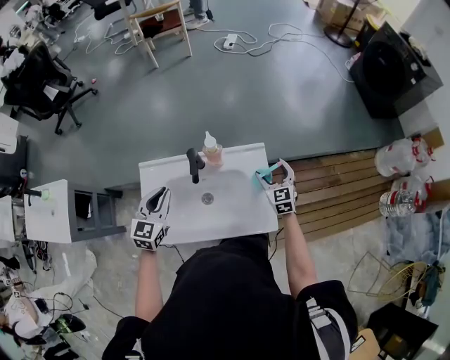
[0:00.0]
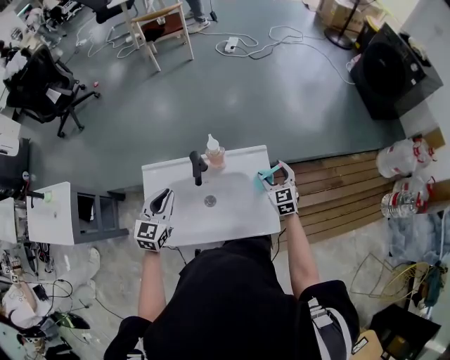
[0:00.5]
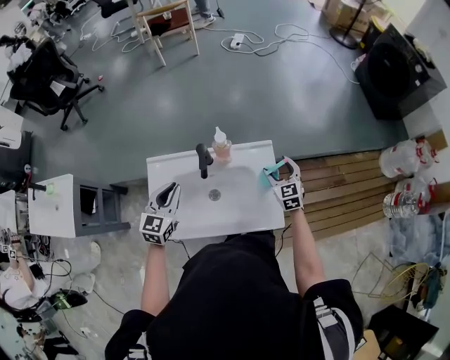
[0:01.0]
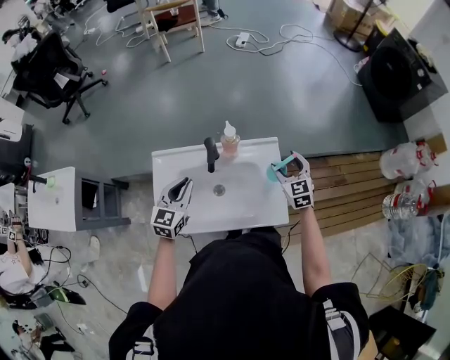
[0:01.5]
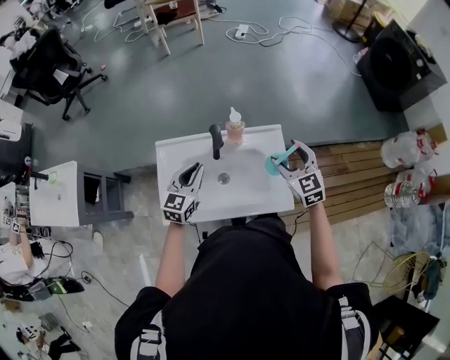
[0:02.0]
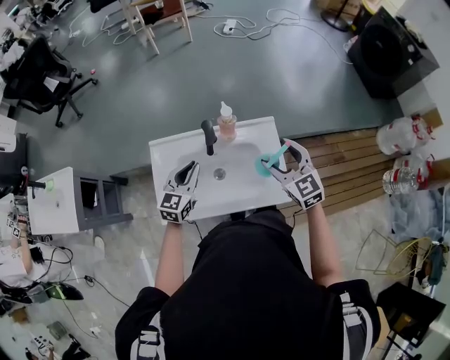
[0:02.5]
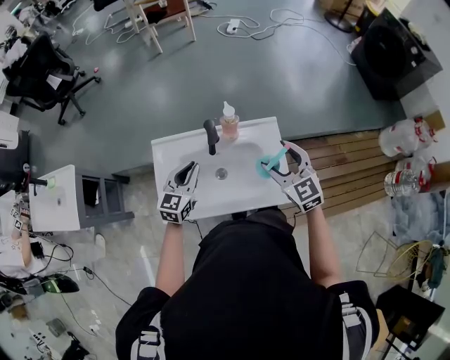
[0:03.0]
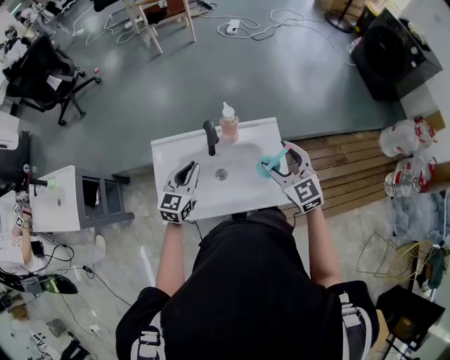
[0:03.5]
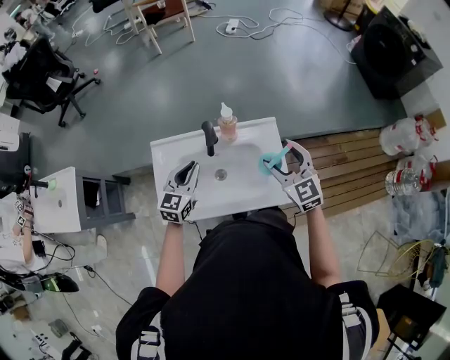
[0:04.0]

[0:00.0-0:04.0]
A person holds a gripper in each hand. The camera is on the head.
0.0 to 2.0 s: The right gripper travels upward, to the left and backward by some 15 cm.
2.0 to 4.0 s: The grippers move only a little.

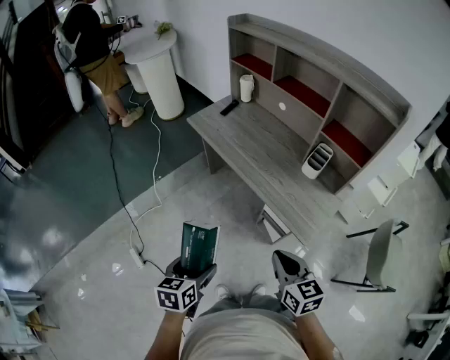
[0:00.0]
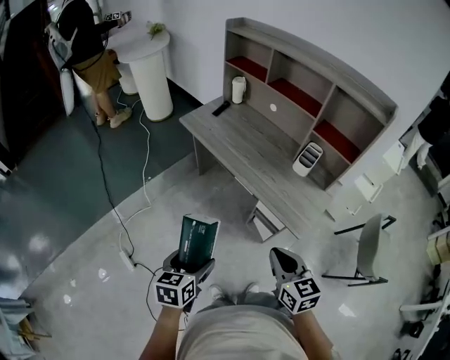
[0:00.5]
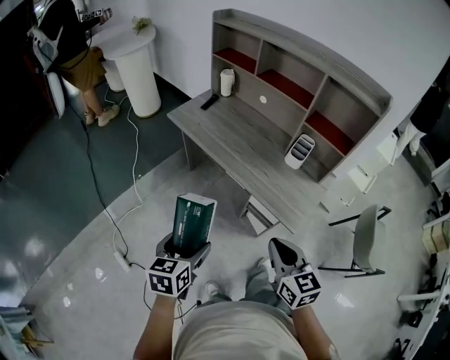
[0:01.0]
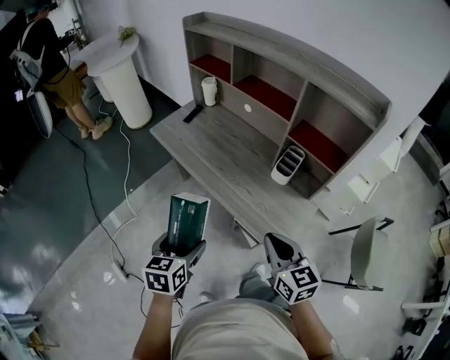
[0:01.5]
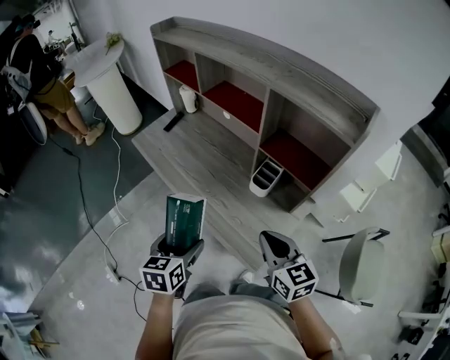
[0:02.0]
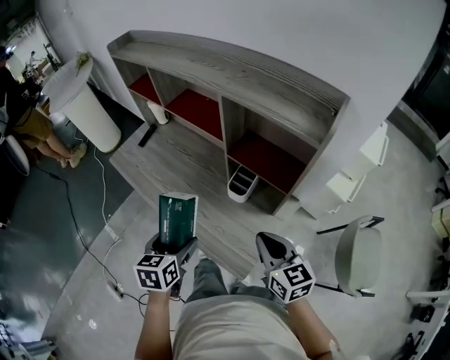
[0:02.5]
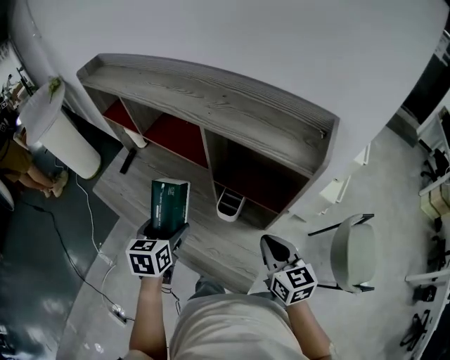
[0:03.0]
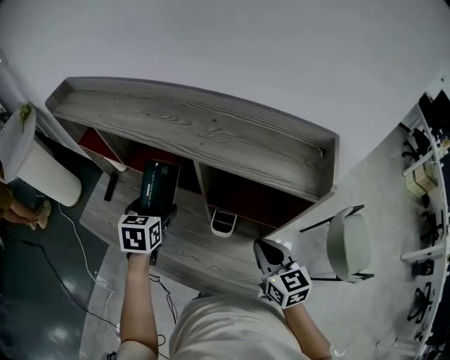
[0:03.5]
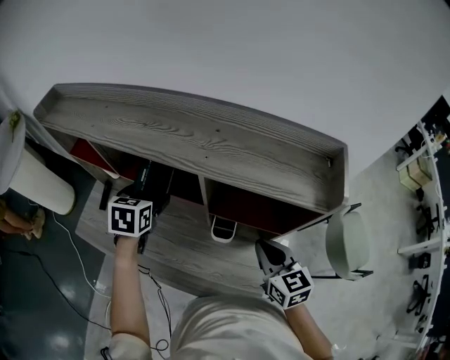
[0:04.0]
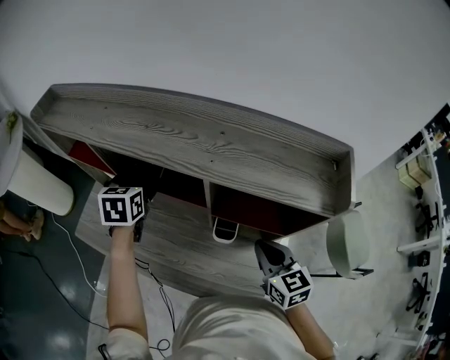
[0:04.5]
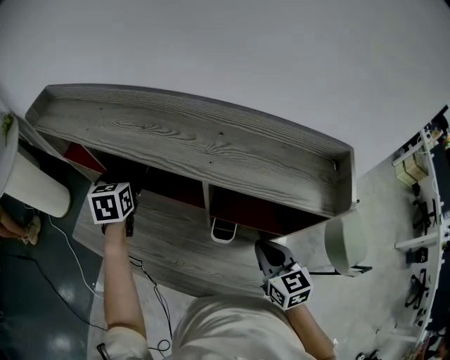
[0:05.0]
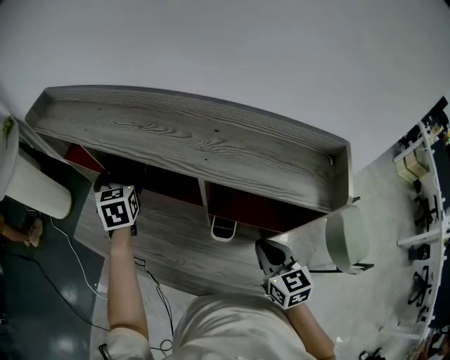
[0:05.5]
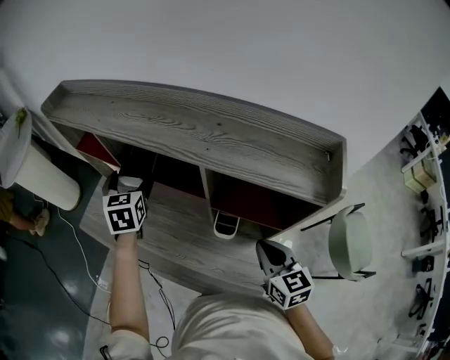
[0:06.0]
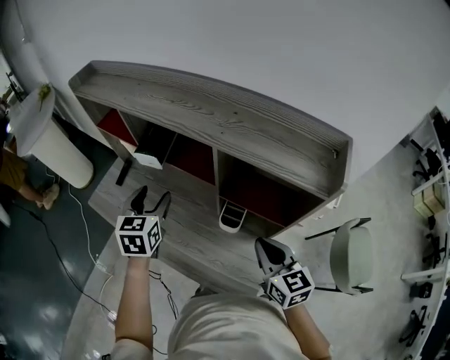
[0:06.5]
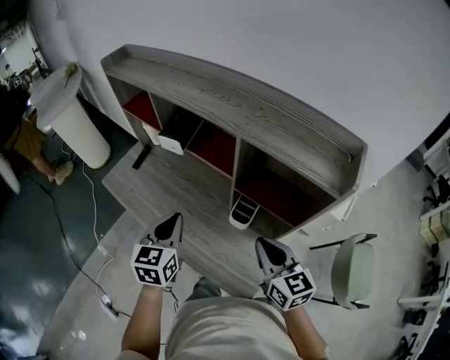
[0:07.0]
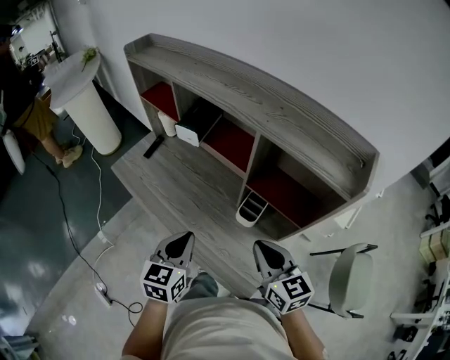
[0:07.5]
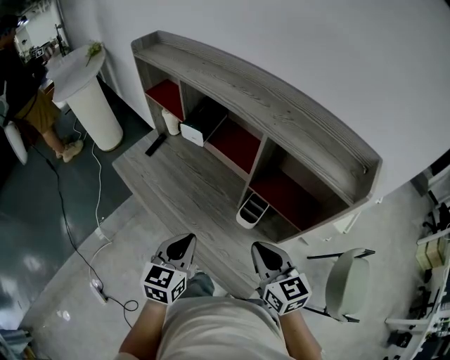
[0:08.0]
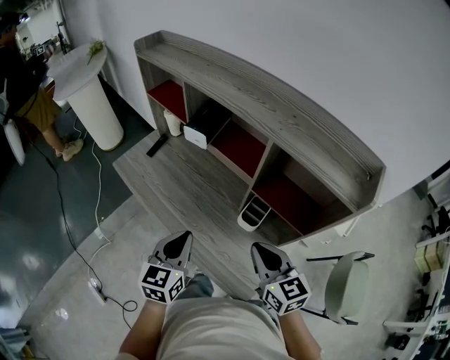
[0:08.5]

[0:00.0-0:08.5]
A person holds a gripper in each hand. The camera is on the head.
0.0 to 2.0 s: The right gripper heads to the right and forward, covering roughly 25 cm. Meanwhile the left gripper travels forward and to the right by roughly 30 cm.
2.0 to 4.0 s: The right gripper moves approximately 20 cm, and turns by approximately 30 degrees. The left gripper changes place by some 40 cm, and changes its angle by roughly 30 degrees.
4.0 to 6.5 s: The left gripper travels backward by approximately 10 cm, and changes its angle by approximately 20 degrees.
6.5 to 8.5 s: The right gripper moves to the left, about 10 cm; the left gripper travels backward by roughly 20 cm, and closes its fingers.

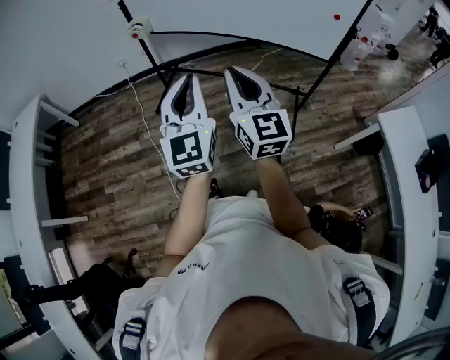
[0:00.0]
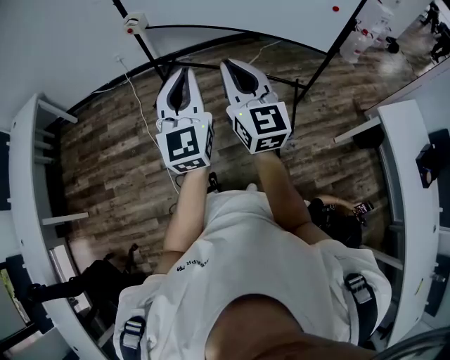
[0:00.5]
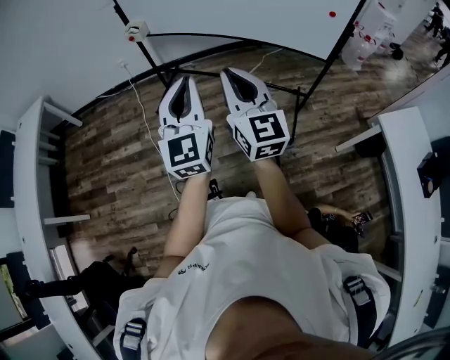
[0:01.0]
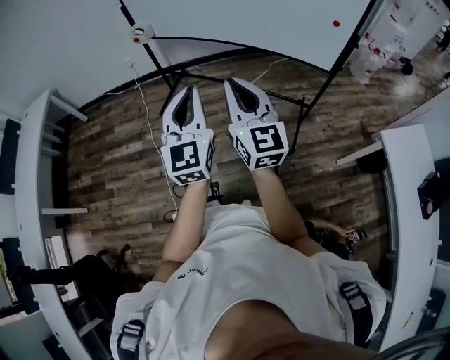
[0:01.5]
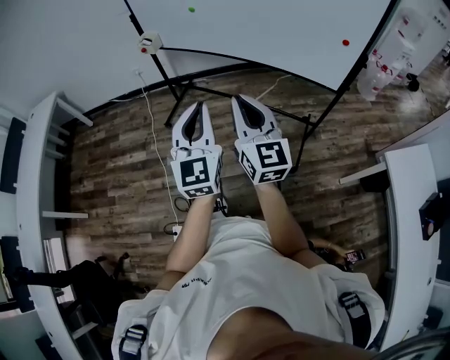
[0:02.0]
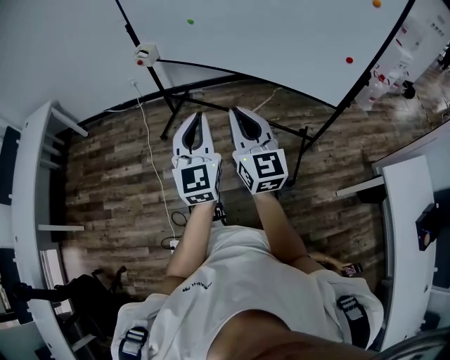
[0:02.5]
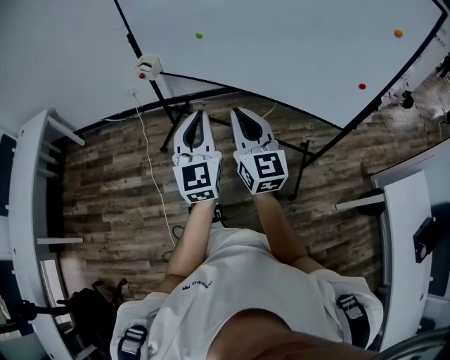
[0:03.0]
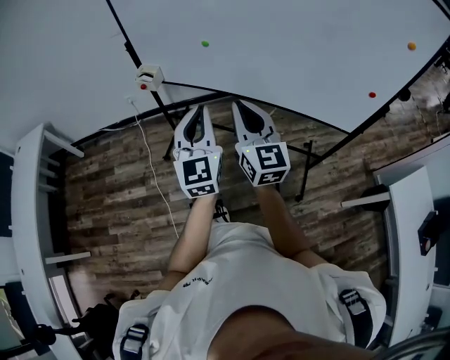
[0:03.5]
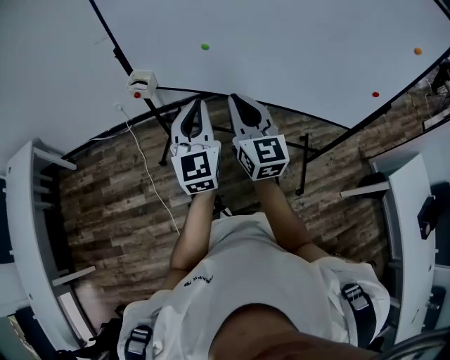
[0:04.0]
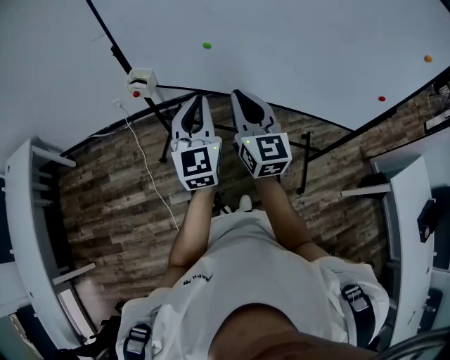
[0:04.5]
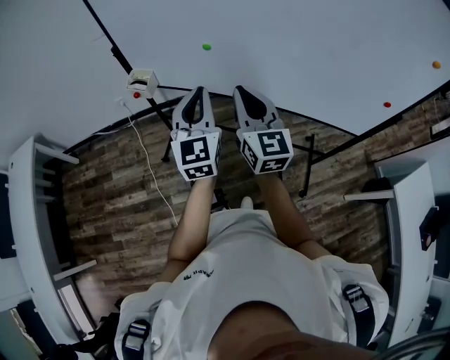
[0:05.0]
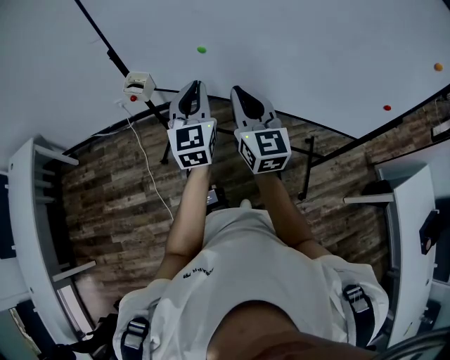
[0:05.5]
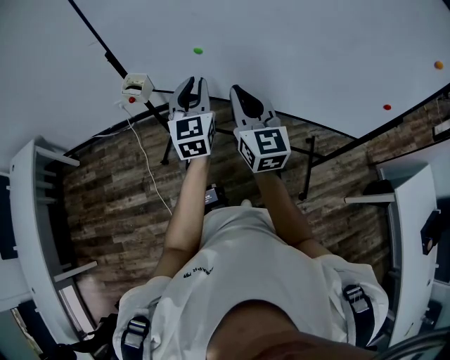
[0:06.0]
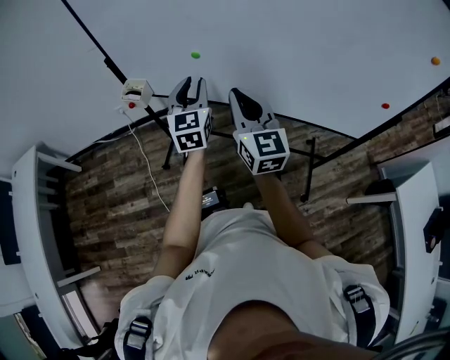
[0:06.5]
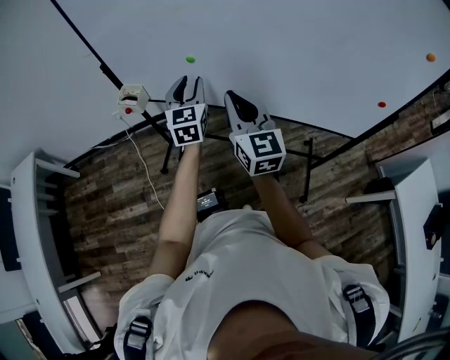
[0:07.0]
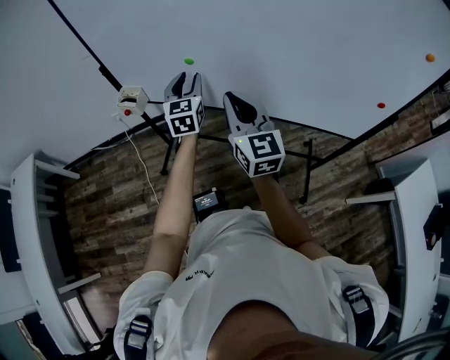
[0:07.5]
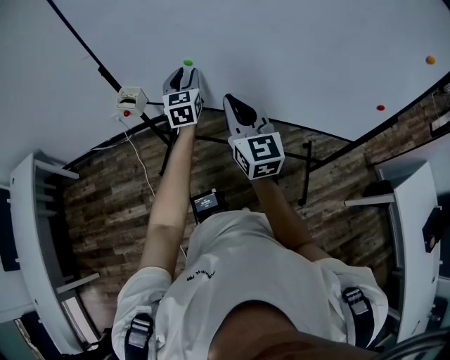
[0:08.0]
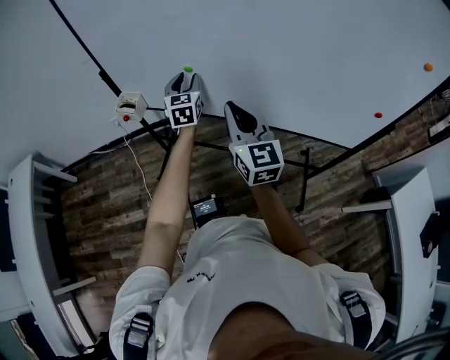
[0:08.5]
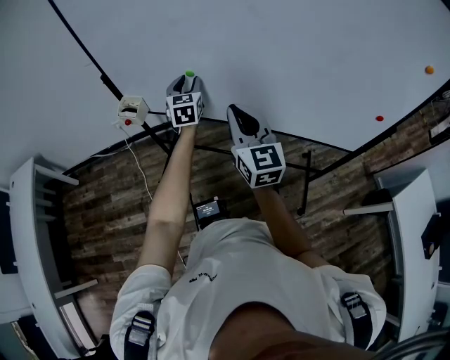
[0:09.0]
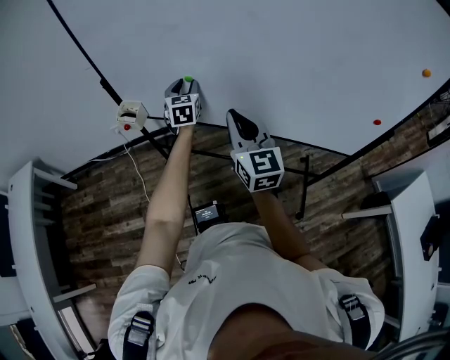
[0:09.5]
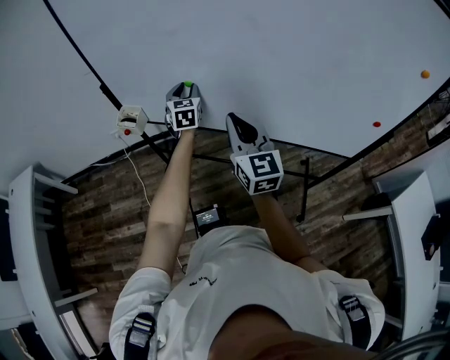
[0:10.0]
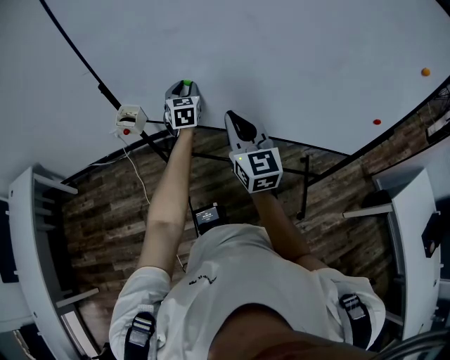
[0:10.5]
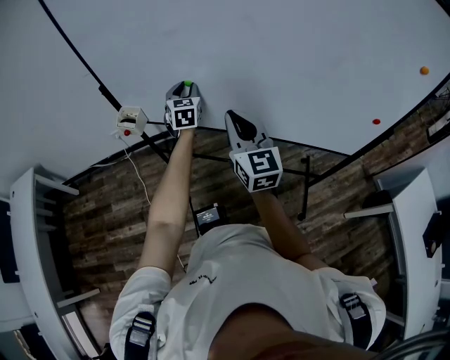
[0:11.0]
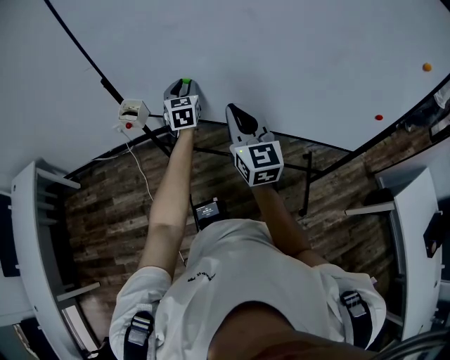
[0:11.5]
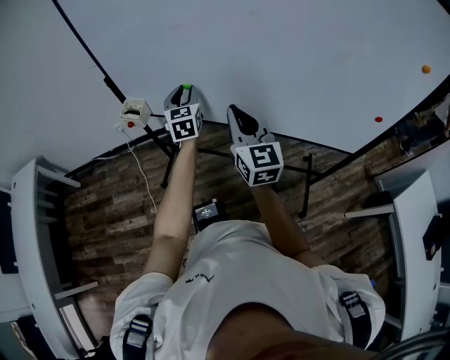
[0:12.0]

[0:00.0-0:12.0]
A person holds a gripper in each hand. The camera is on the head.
0.0 to 2.0 s: The two grippers go about 10 cm to the right.
2.0 to 4.0 s: Both grippers move forward, some 35 cm.
4.0 to 6.0 s: The left gripper travels forward by some 15 cm, while the right gripper heads forward and to the right, covering approximately 10 cm.
6.0 to 8.0 s: The left gripper shifts about 10 cm forward.
8.0 to 10.0 s: The left gripper shifts approximately 5 cm forward.
10.0 to 12.0 s: The left gripper travels backward by some 5 cm.

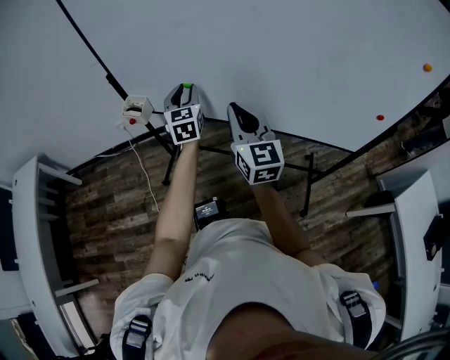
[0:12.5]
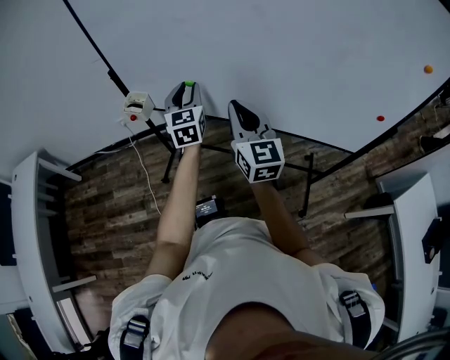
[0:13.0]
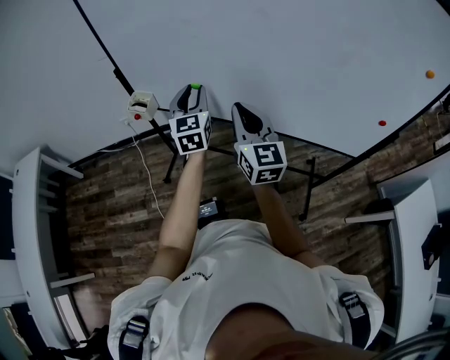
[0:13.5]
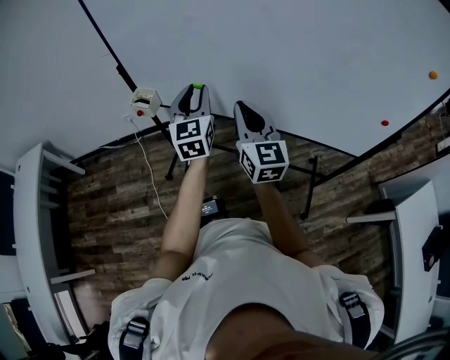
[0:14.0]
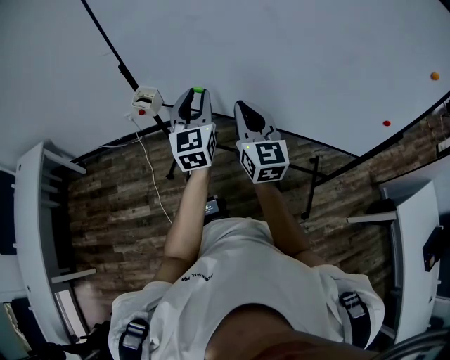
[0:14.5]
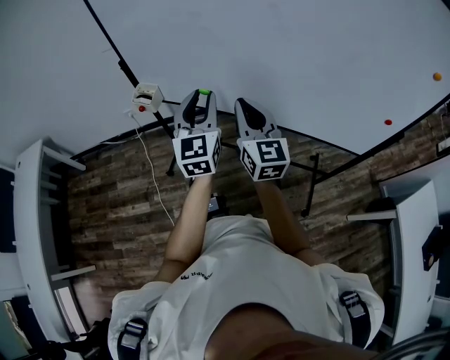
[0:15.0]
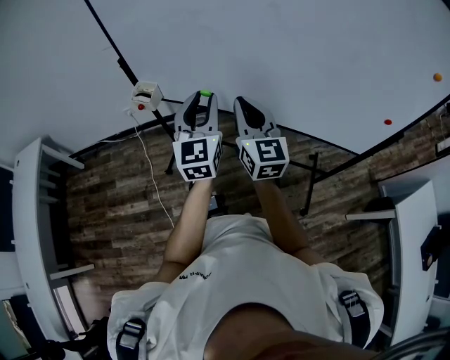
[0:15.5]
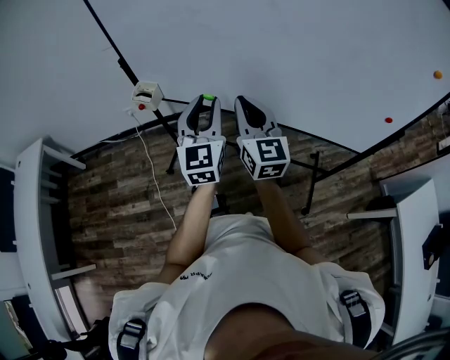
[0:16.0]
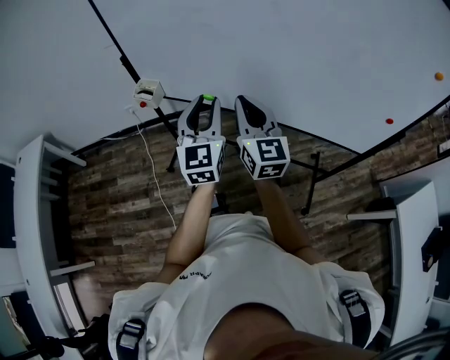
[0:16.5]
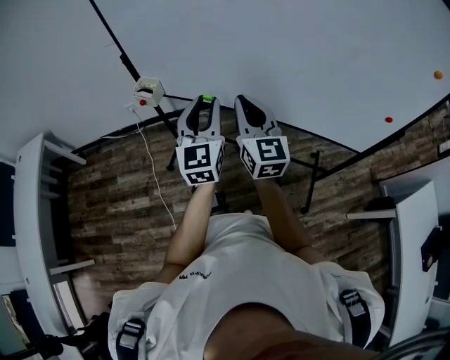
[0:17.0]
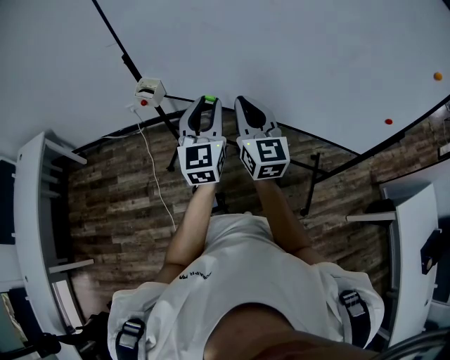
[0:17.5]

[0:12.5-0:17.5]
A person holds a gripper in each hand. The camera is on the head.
12.5 to 15.0 s: The left gripper travels backward and upward by roughly 15 cm.
15.0 to 17.5 s: There are only small adjustments of the grippers.
